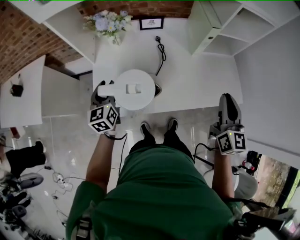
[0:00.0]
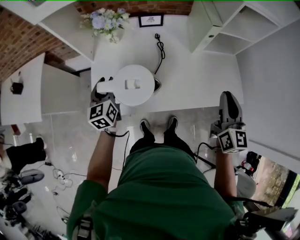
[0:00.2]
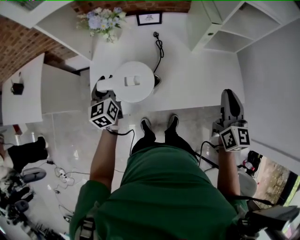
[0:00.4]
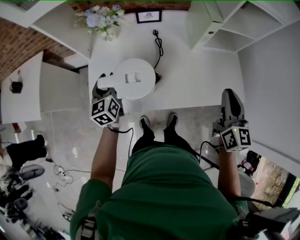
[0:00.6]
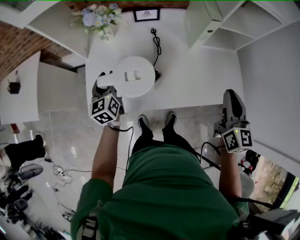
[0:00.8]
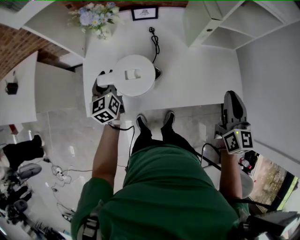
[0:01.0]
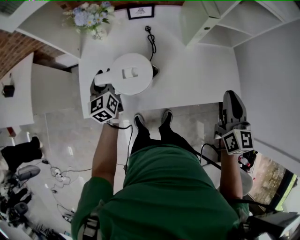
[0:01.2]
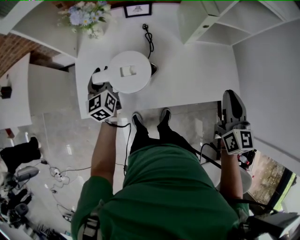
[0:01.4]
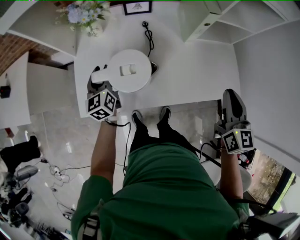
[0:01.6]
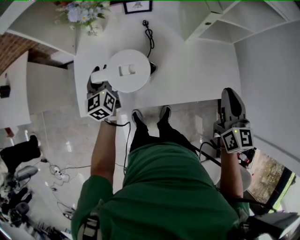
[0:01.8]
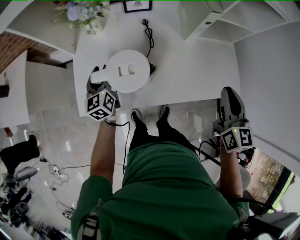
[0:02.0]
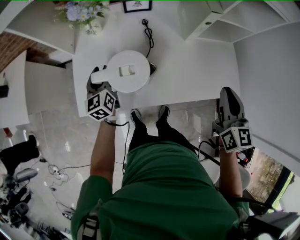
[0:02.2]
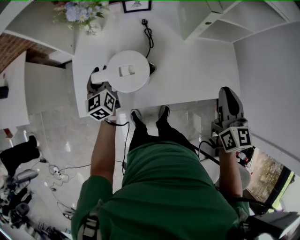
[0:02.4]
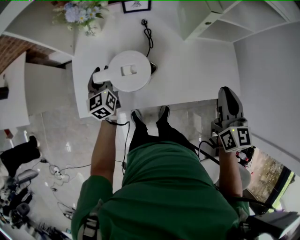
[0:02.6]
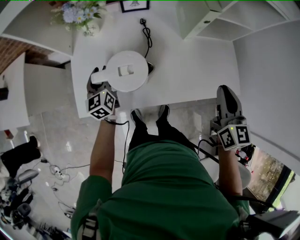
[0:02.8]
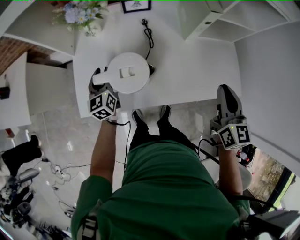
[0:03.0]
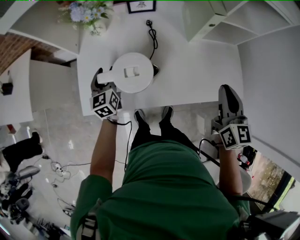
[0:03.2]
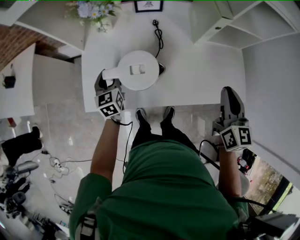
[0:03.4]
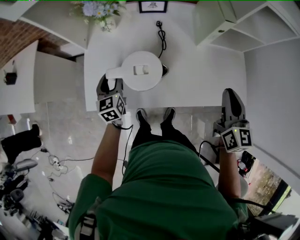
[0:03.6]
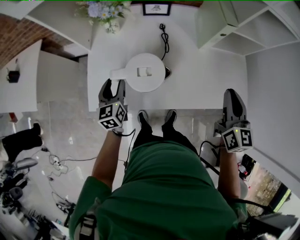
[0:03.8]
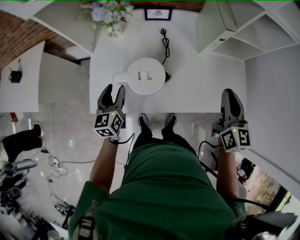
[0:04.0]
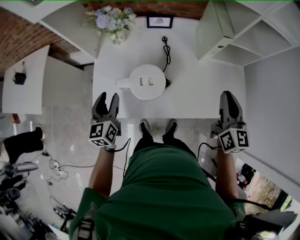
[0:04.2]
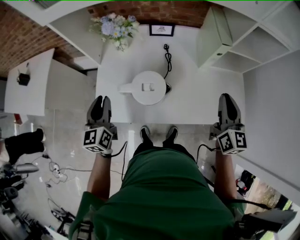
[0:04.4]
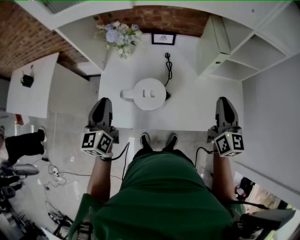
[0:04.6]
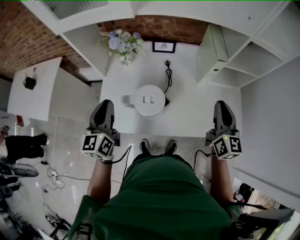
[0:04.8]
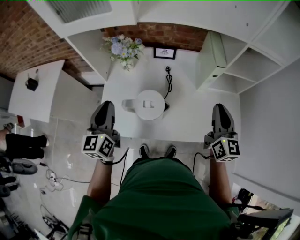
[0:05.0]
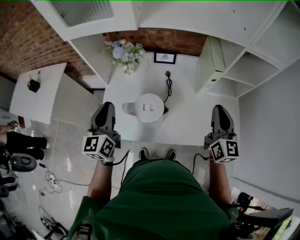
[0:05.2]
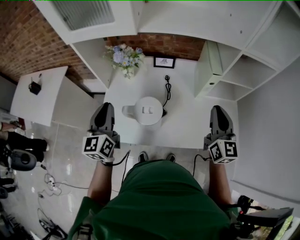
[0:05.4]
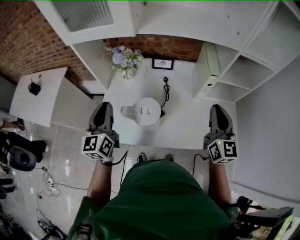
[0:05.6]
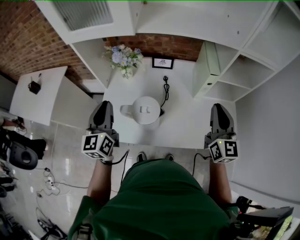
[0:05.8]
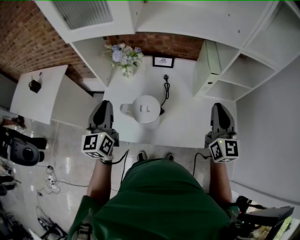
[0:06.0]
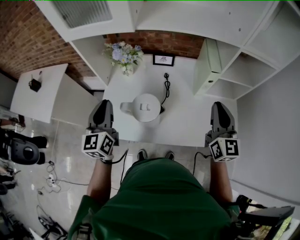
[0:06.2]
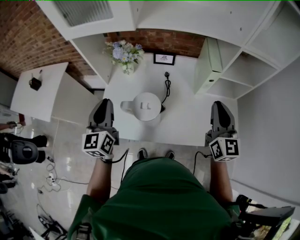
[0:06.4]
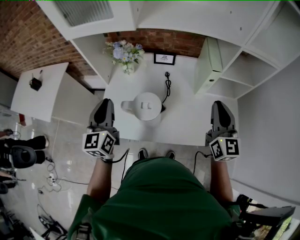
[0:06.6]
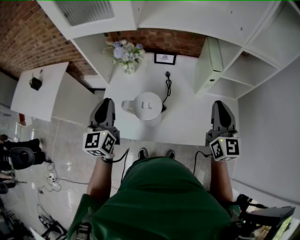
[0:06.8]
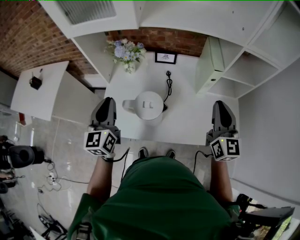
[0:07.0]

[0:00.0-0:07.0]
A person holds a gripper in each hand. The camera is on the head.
0.0 to 1.4 s: The right gripper travels to the right by some 5 cm; the left gripper moves to the right, forward and downward, some 10 cm.
1.4 to 2.8 s: The grippers make only small movements.
2.8 to 4.2 s: The right gripper shifts by approximately 5 cm. Meanwhile the left gripper goes some 10 cm backward and upward.
4.2 to 5.6 s: The left gripper goes about 15 cm upward, and closes. The right gripper heads upward, covering approximately 10 cm.
5.6 to 7.0 s: Neither gripper changes place.

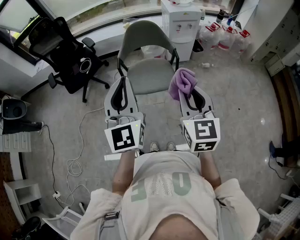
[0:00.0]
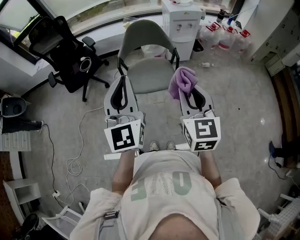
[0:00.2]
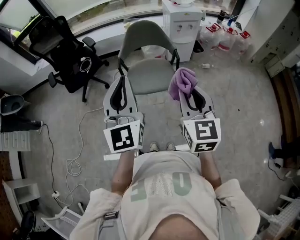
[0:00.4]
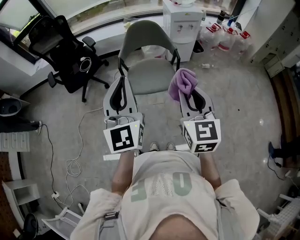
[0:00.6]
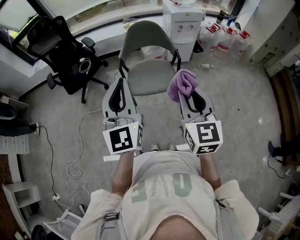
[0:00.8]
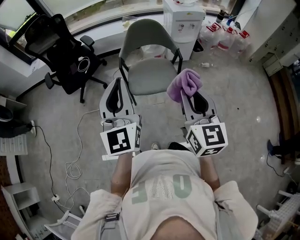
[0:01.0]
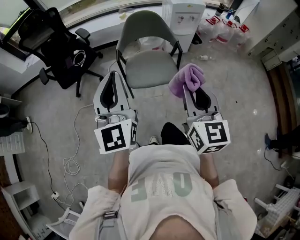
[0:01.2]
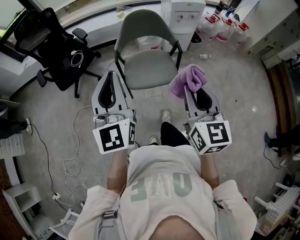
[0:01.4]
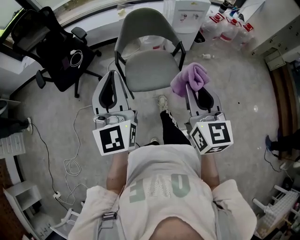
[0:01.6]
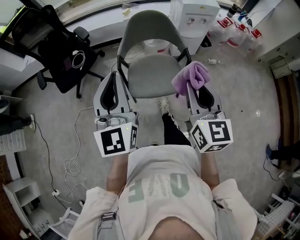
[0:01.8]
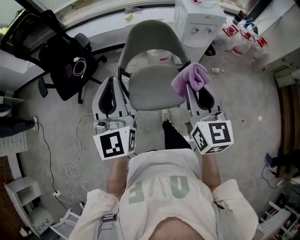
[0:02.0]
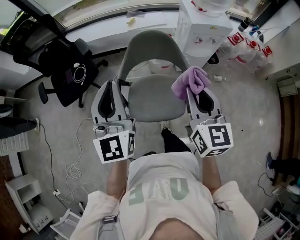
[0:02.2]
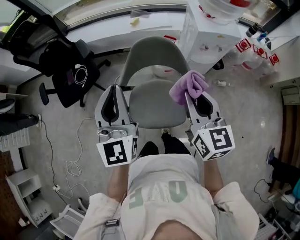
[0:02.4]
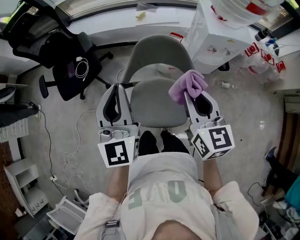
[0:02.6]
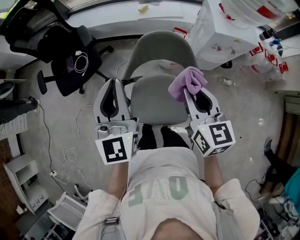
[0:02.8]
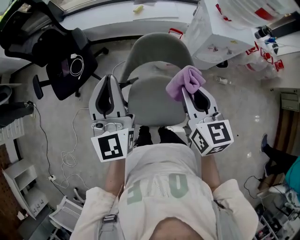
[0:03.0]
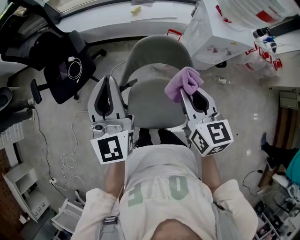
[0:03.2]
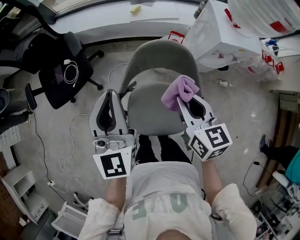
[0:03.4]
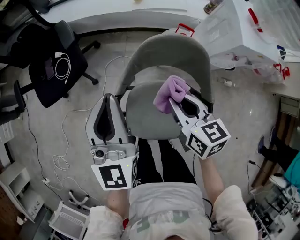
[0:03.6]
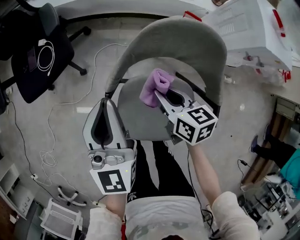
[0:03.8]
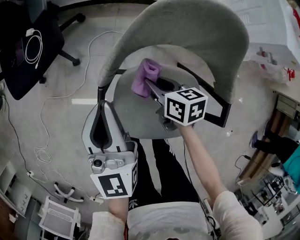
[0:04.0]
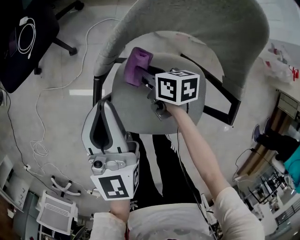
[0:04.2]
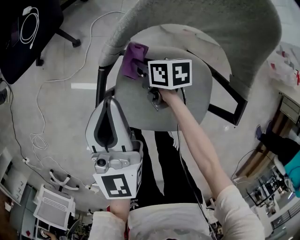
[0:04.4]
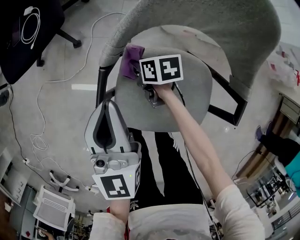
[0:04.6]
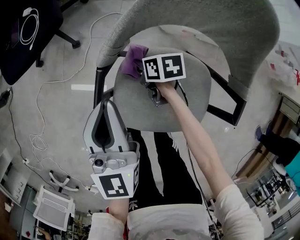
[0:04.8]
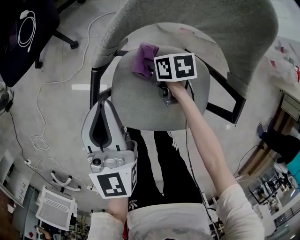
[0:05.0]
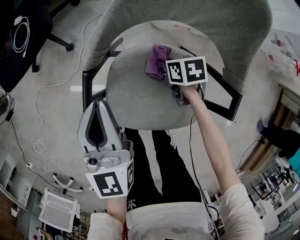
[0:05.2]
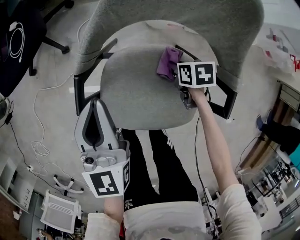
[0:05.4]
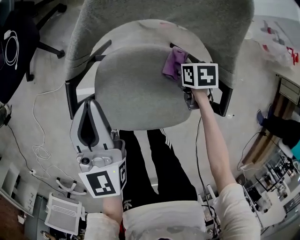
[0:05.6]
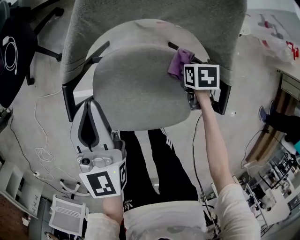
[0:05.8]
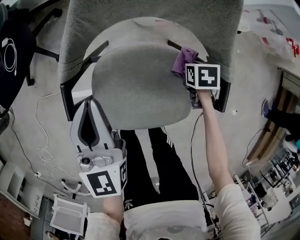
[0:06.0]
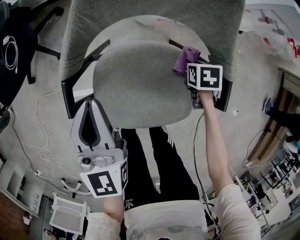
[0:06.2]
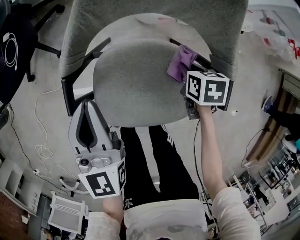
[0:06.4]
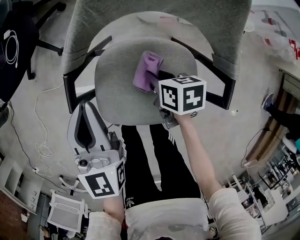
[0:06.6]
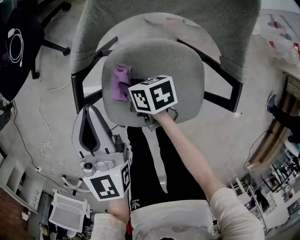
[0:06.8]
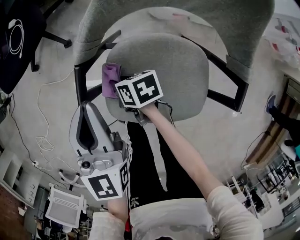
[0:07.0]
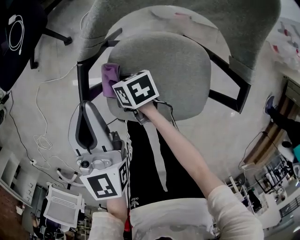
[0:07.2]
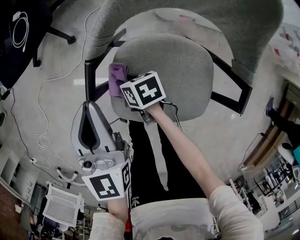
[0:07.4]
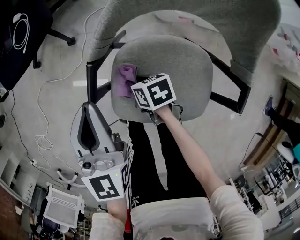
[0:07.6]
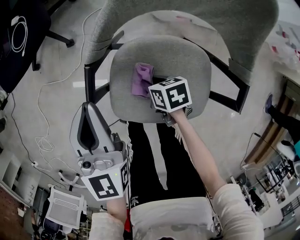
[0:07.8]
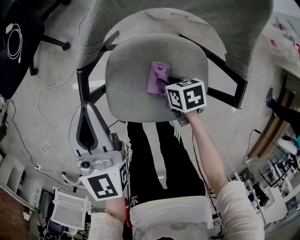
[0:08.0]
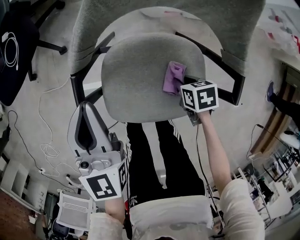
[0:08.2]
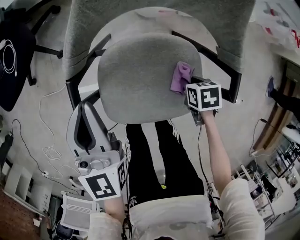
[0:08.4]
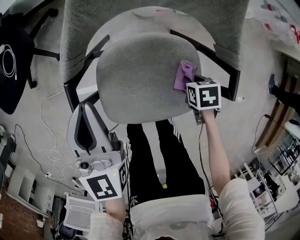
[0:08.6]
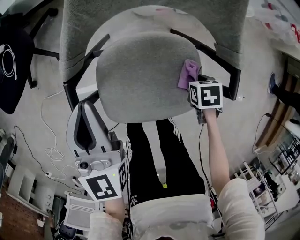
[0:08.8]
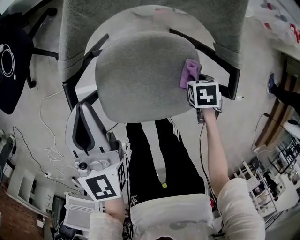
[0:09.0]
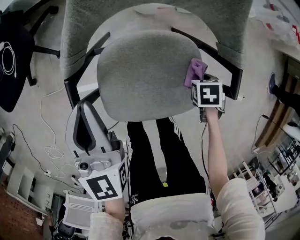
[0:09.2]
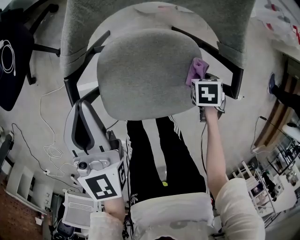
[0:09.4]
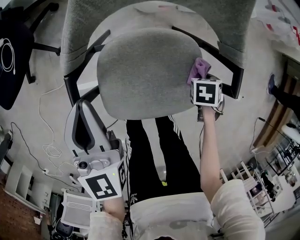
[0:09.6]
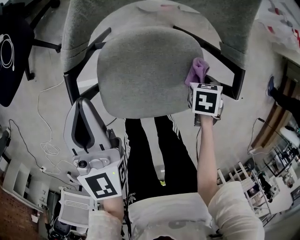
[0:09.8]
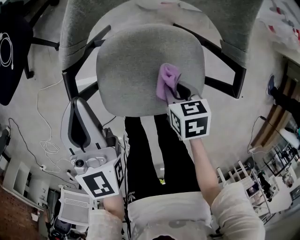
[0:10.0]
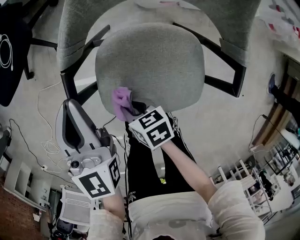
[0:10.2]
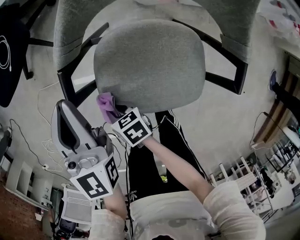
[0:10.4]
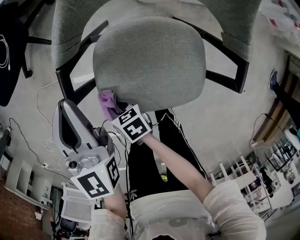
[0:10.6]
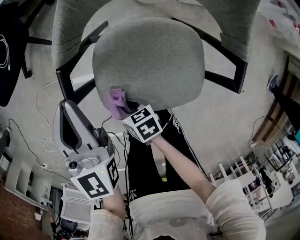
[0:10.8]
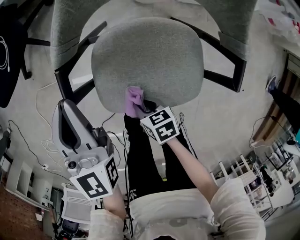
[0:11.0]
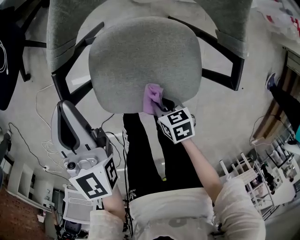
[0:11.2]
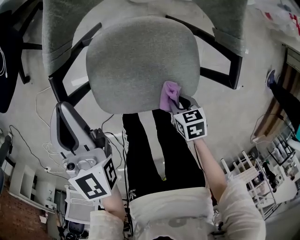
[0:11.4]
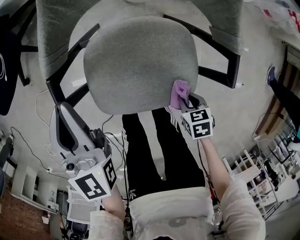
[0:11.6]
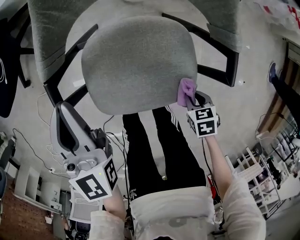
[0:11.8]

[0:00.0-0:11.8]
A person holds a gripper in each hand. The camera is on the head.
0.0 to 1.4 s: The left gripper travels to the left and forward by roughly 10 cm; the right gripper shifts by some 5 cm.
1.4 to 3.0 s: Both grippers move forward, some 40 cm. The right gripper changes its angle by approximately 20 degrees.
3.0 to 4.4 s: The two grippers go approximately 40 cm downward. The left gripper turns by approximately 20 degrees. Meanwhile the right gripper rotates about 50 degrees.
4.4 to 6.0 s: The left gripper moves approximately 5 cm, while the right gripper changes place by approximately 30 cm, and tilts its fingers some 40 degrees downward.
6.0 to 7.4 s: The right gripper moves about 35 cm, and changes its angle by approximately 40 degrees, while the left gripper moves approximately 10 cm.
7.4 to 8.8 s: The right gripper ends up approximately 35 cm from where it was, and tips its fingers downward by approximately 30 degrees. The left gripper ends up about 5 cm from where it was.
8.8 to 10.4 s: The right gripper shifts by some 35 cm, and points its fingers roughly 40 degrees further upward.
10.4 to 11.8 s: The right gripper shifts by some 35 cm, and angles its fingers downward, by some 30 degrees.

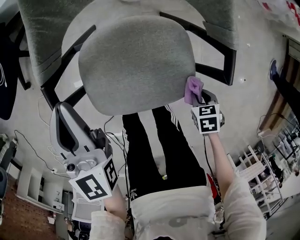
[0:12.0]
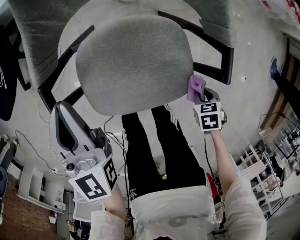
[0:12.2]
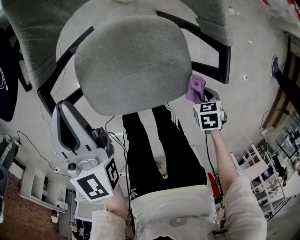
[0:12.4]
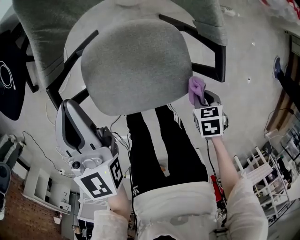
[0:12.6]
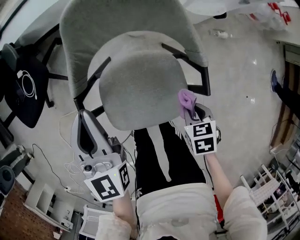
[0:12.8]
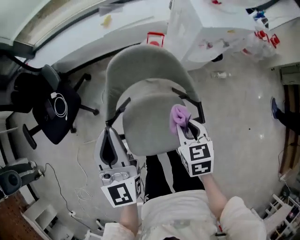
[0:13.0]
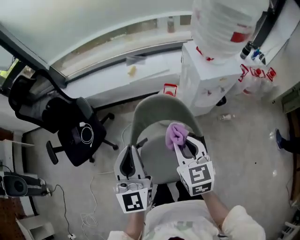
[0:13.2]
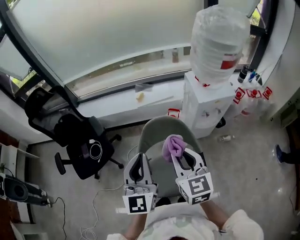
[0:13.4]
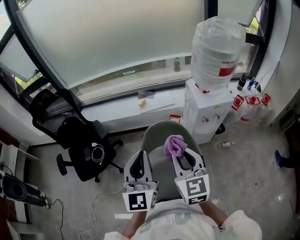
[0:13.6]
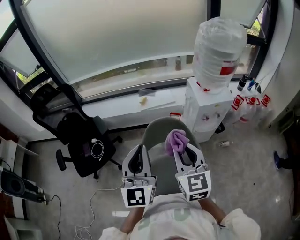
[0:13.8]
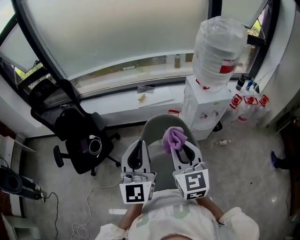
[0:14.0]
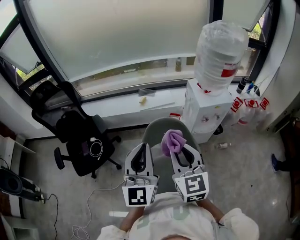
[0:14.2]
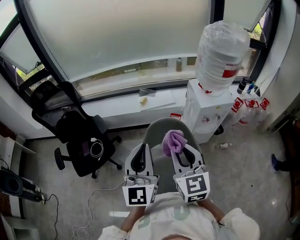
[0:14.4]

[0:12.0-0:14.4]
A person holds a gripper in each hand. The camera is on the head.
12.0 to 13.2 s: Both grippers move upward, approximately 40 cm. The right gripper points its fingers some 60 degrees further upward; the left gripper rotates some 30 degrees.
13.2 to 14.4 s: The two grippers go some 15 cm upward. The right gripper swivels roughly 20 degrees.

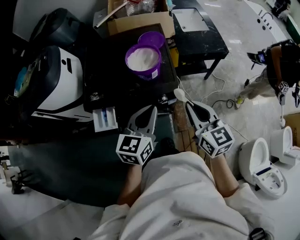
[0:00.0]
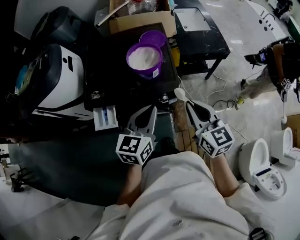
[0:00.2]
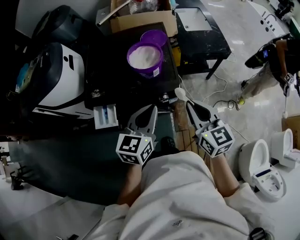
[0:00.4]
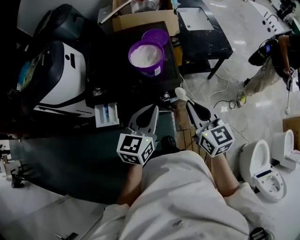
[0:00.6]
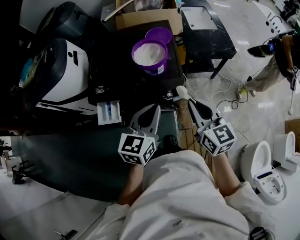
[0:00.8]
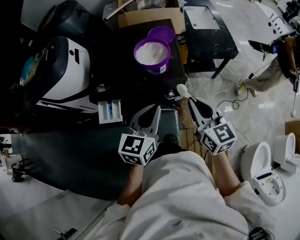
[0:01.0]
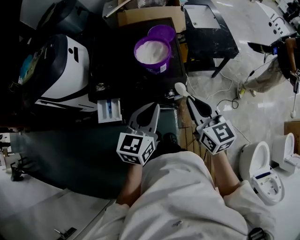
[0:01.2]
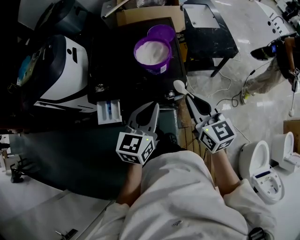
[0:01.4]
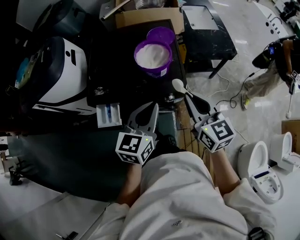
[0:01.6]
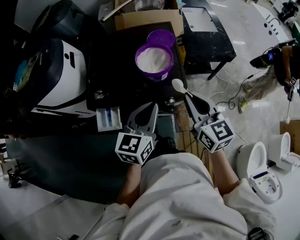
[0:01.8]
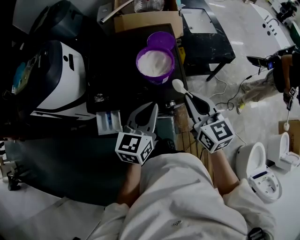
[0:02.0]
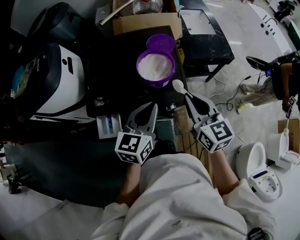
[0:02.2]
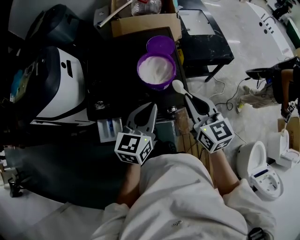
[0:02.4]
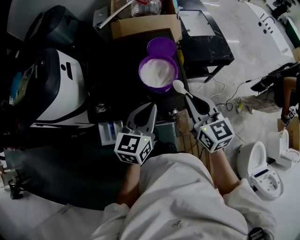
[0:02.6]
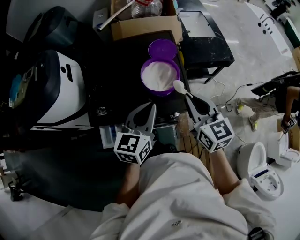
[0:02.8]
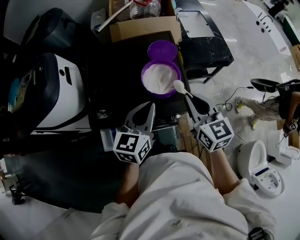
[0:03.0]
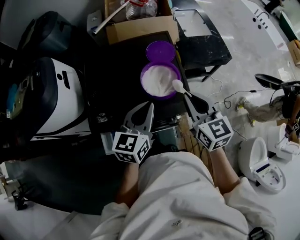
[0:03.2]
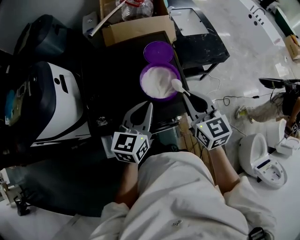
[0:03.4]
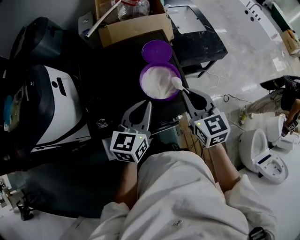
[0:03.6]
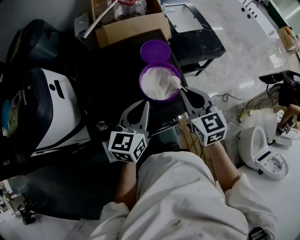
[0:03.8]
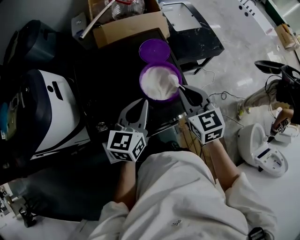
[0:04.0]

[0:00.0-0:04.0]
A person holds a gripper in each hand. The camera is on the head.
0.0 to 1.4 s: There are only small adjustments of the grippers.
1.4 to 2.6 s: Both grippers move forward, roughly 10 cm.
2.6 to 4.0 s: The right gripper shifts about 5 cm forward. Meanwhile the left gripper is displaced forward and to the left by some 10 cm.
